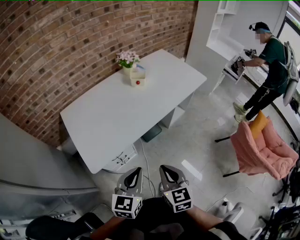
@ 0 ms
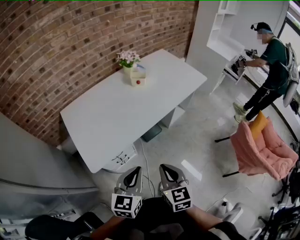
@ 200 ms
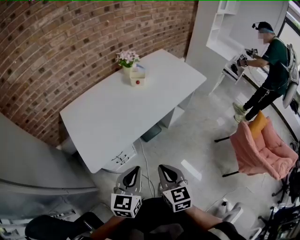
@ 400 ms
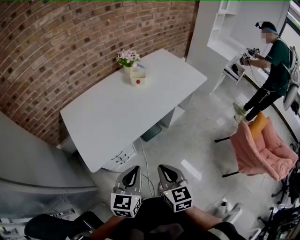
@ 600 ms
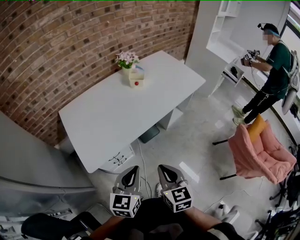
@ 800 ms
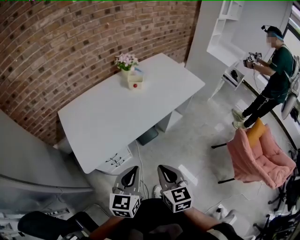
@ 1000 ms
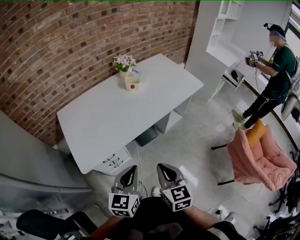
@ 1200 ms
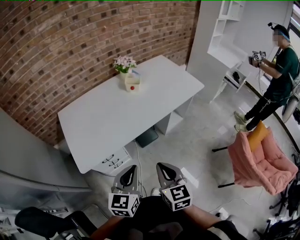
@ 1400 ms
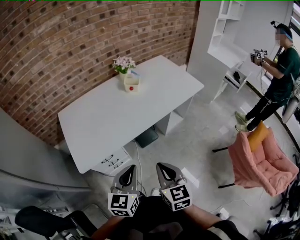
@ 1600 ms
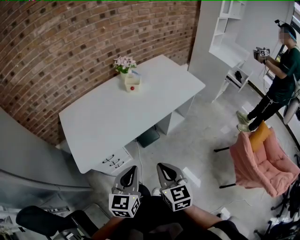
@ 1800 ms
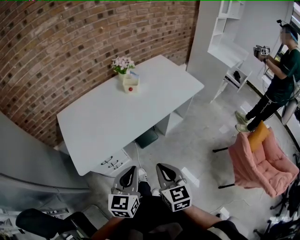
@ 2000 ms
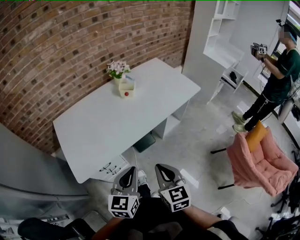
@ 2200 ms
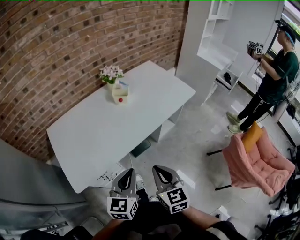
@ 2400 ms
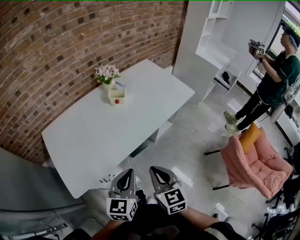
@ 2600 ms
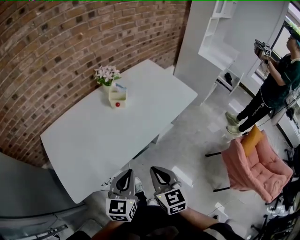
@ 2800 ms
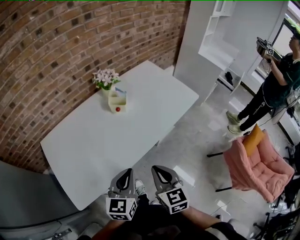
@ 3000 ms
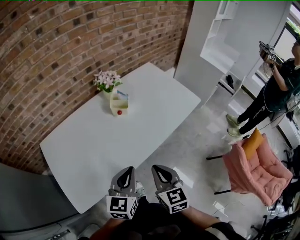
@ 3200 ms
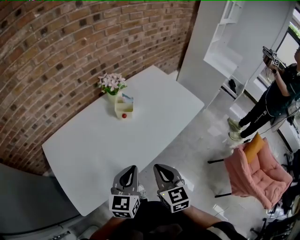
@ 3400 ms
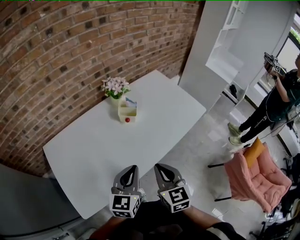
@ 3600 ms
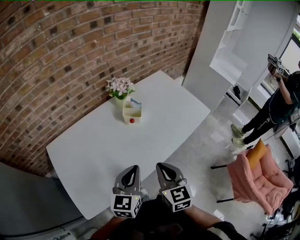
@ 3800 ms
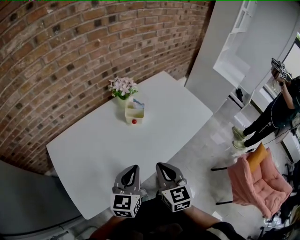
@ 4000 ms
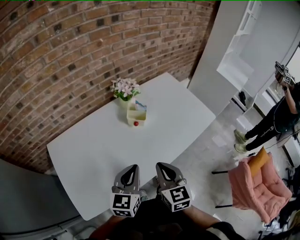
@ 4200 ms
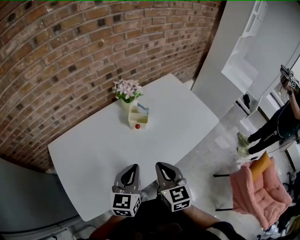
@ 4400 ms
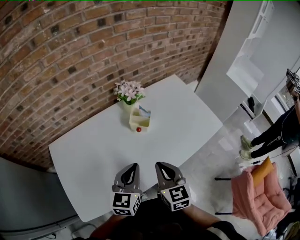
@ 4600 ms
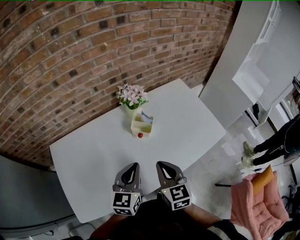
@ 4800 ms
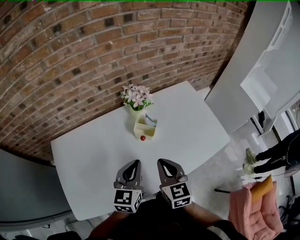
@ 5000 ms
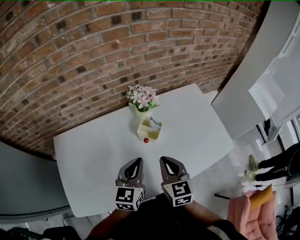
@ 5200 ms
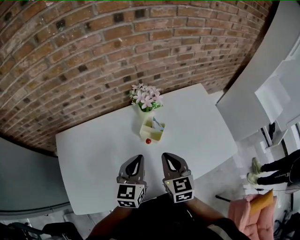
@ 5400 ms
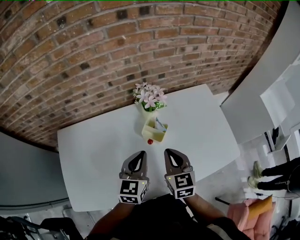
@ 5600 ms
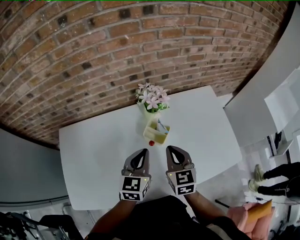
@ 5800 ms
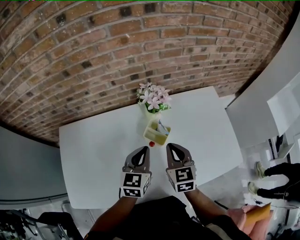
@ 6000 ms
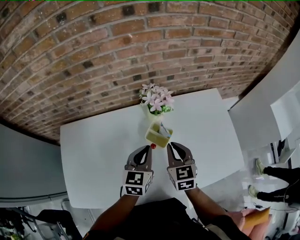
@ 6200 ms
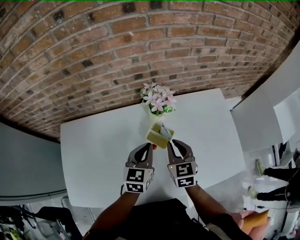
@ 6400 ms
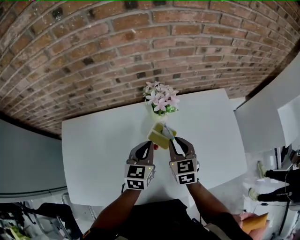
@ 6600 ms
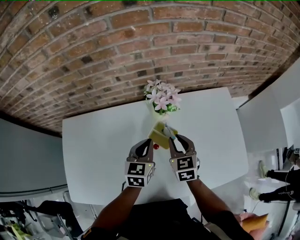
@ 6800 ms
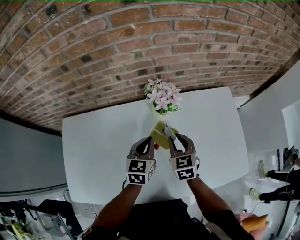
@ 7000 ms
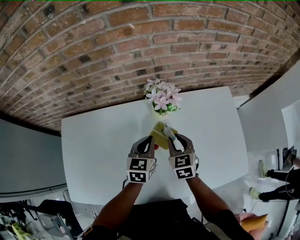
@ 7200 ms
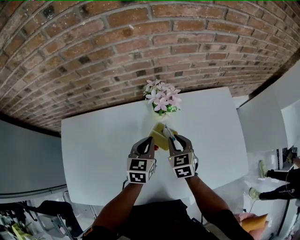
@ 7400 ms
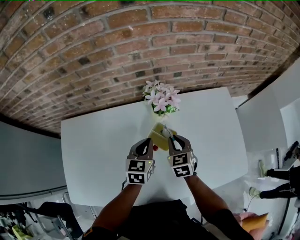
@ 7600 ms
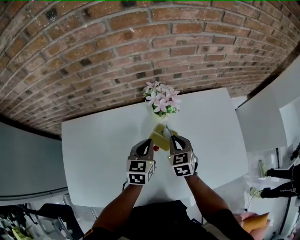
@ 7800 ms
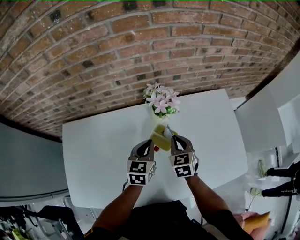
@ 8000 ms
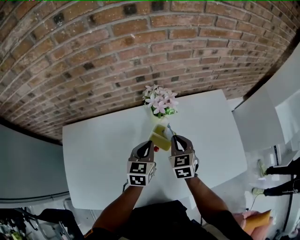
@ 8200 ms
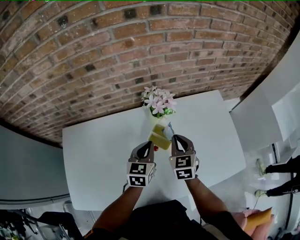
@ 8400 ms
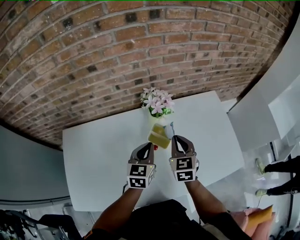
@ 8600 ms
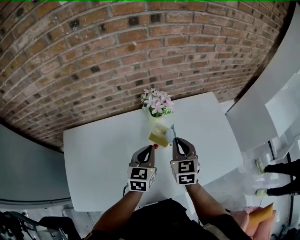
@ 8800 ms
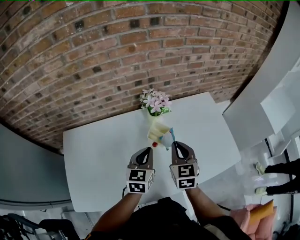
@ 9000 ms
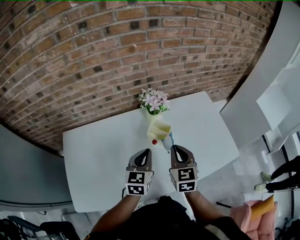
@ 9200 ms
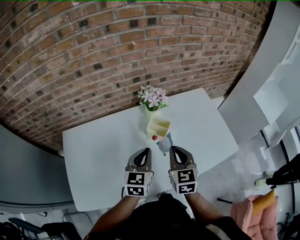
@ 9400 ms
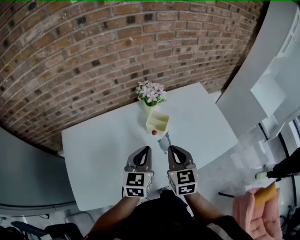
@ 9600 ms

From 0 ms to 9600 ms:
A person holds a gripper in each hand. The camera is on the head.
From 0 ms to 1600 ms: Both grippers move to the right, roughly 10 cm.
From 1600 ms to 3200 ms: Both grippers move forward, some 25 cm.
From 3200 ms to 4800 ms: Both grippers move forward, approximately 20 cm.
From 4800 ms to 6400 ms: Both grippers travel together forward, about 20 cm.
From 6400 ms to 8000 ms: The right gripper is displaced downward by approximately 5 cm, while the left gripper moves roughly 5 cm.
From 8000 ms to 9600 ms: Both grippers travel together backward and upward, approximately 20 cm.

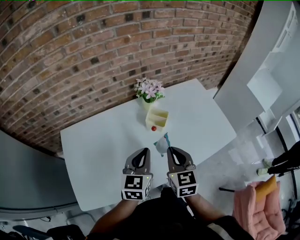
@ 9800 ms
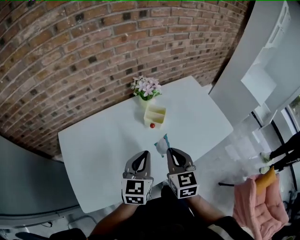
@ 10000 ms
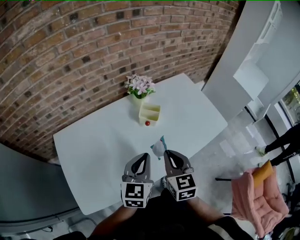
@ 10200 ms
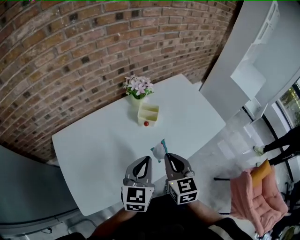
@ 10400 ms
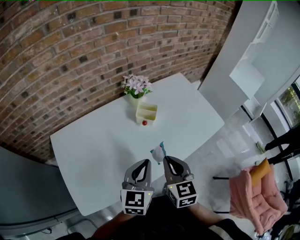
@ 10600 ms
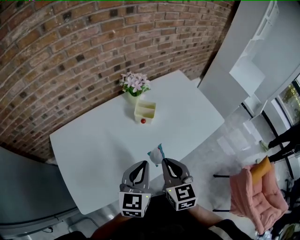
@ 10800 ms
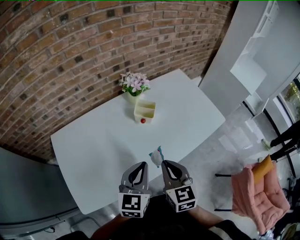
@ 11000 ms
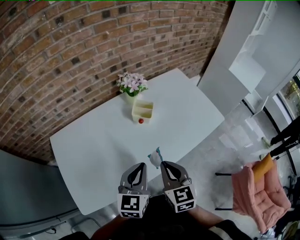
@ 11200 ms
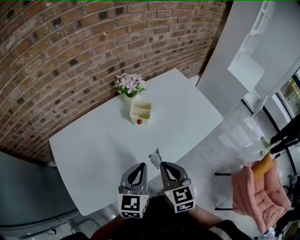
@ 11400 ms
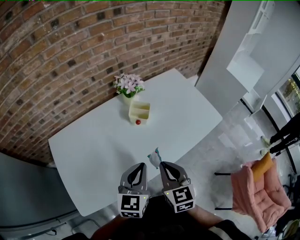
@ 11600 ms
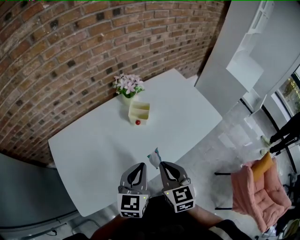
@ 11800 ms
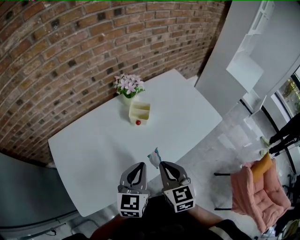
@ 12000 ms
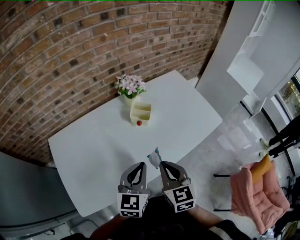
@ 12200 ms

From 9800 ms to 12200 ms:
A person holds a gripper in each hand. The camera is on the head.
From 9800 ms to 11000 ms: The two grippers go about 10 cm backward.
From 11000 ms to 12200 ms: The grippers stay close to where they were, moving slightly.

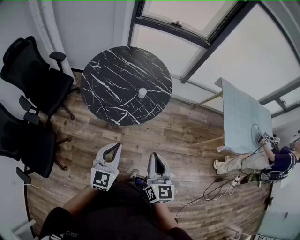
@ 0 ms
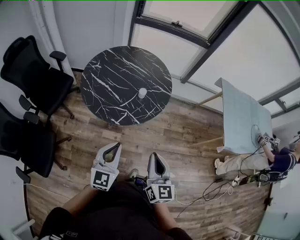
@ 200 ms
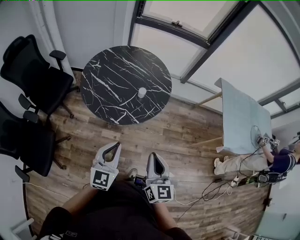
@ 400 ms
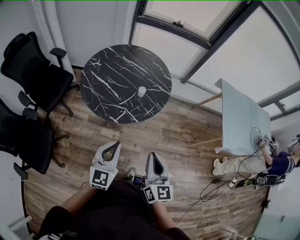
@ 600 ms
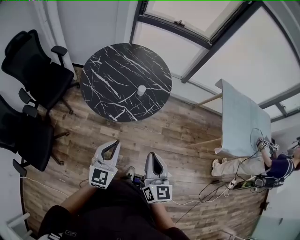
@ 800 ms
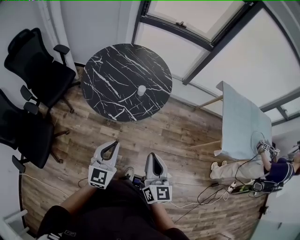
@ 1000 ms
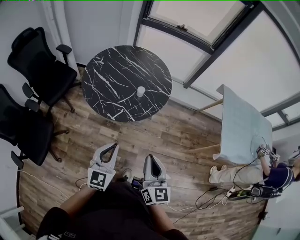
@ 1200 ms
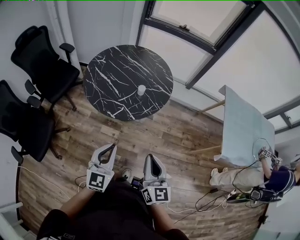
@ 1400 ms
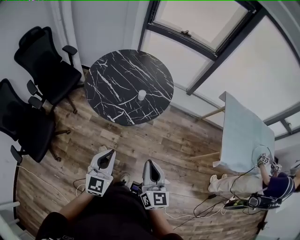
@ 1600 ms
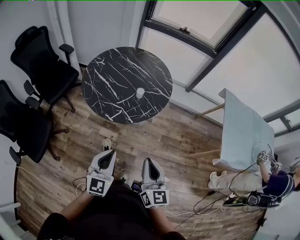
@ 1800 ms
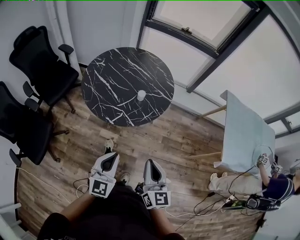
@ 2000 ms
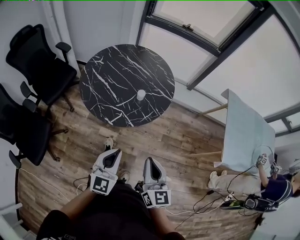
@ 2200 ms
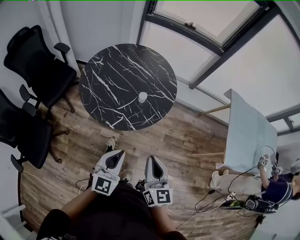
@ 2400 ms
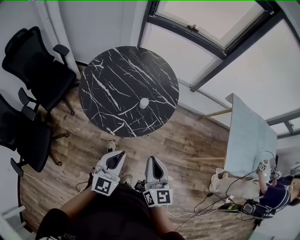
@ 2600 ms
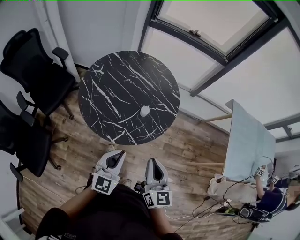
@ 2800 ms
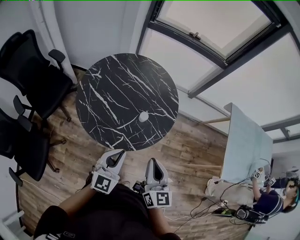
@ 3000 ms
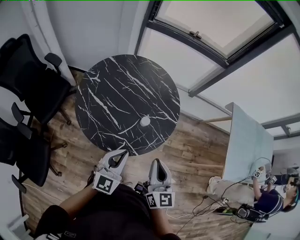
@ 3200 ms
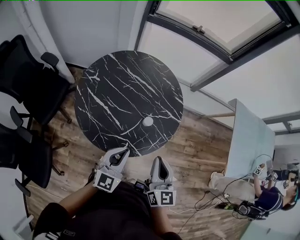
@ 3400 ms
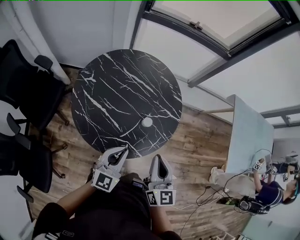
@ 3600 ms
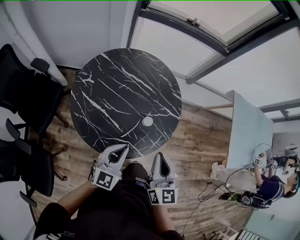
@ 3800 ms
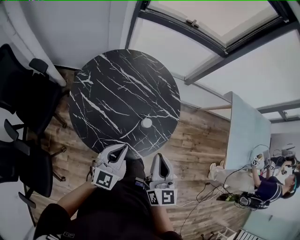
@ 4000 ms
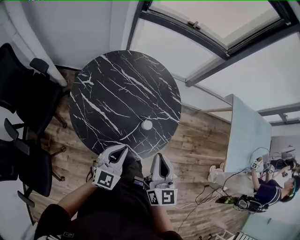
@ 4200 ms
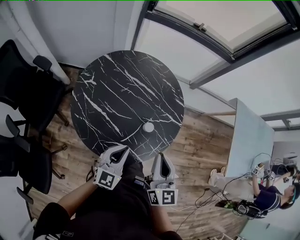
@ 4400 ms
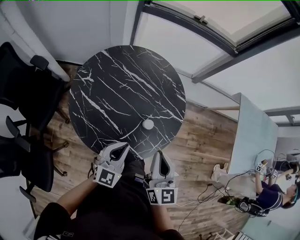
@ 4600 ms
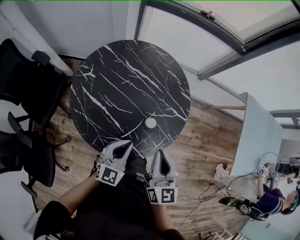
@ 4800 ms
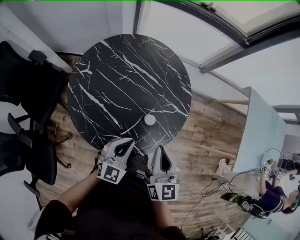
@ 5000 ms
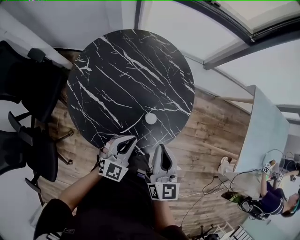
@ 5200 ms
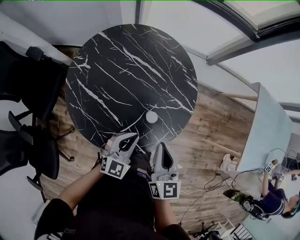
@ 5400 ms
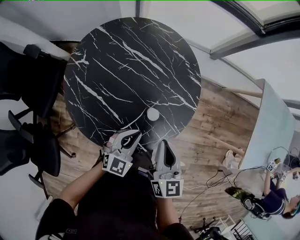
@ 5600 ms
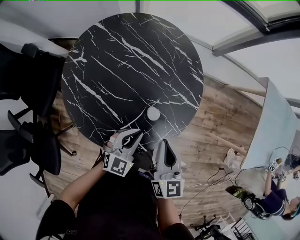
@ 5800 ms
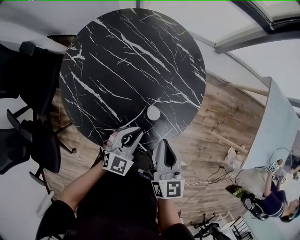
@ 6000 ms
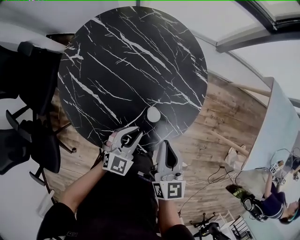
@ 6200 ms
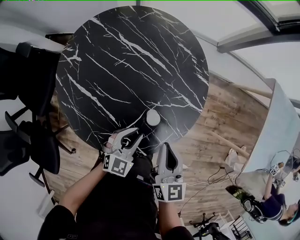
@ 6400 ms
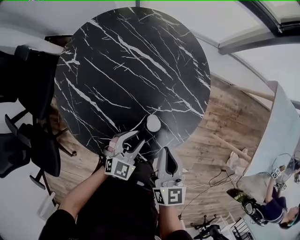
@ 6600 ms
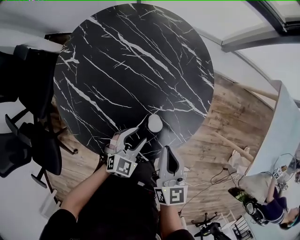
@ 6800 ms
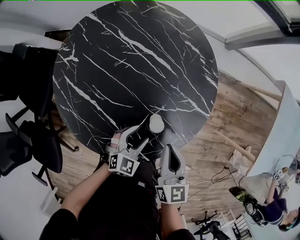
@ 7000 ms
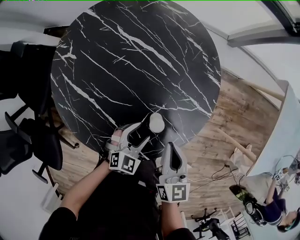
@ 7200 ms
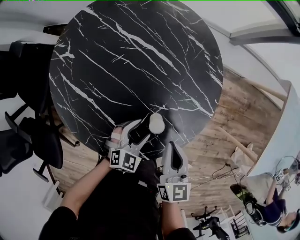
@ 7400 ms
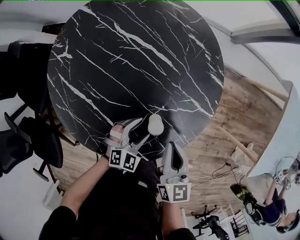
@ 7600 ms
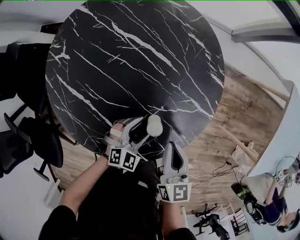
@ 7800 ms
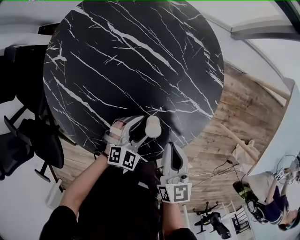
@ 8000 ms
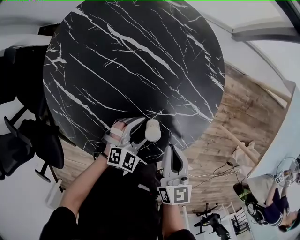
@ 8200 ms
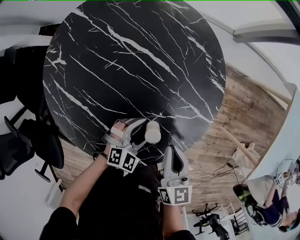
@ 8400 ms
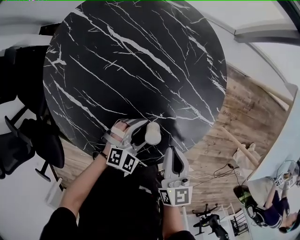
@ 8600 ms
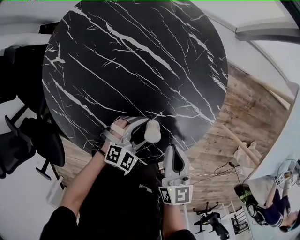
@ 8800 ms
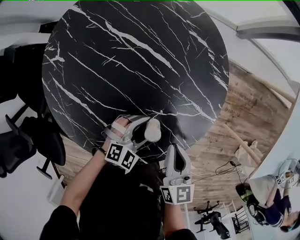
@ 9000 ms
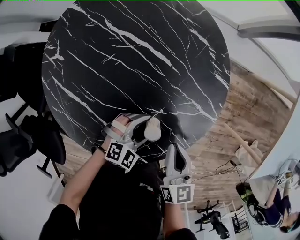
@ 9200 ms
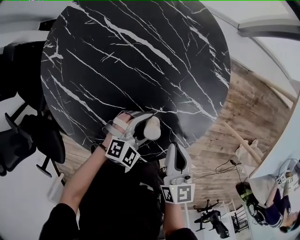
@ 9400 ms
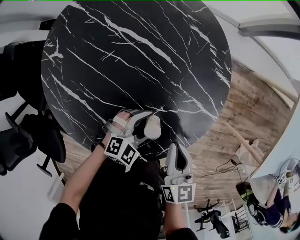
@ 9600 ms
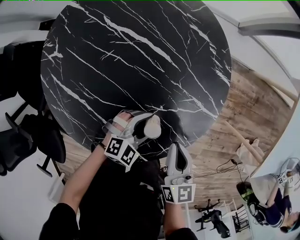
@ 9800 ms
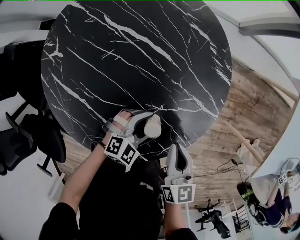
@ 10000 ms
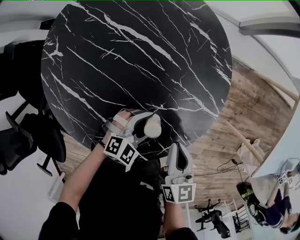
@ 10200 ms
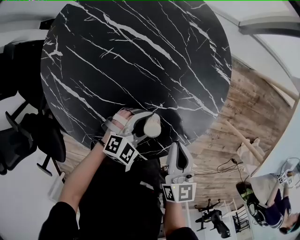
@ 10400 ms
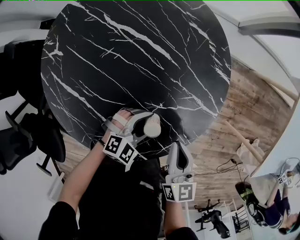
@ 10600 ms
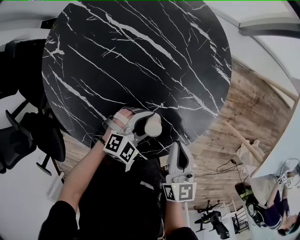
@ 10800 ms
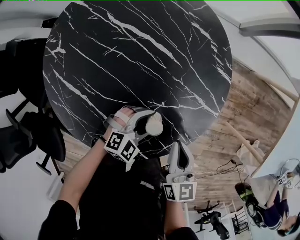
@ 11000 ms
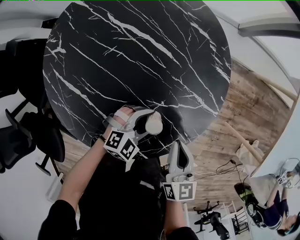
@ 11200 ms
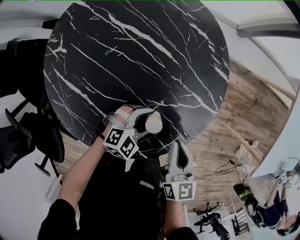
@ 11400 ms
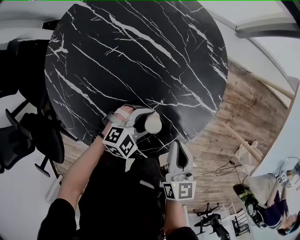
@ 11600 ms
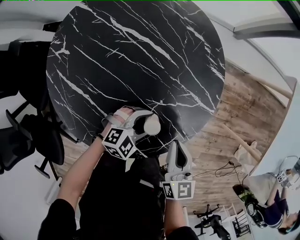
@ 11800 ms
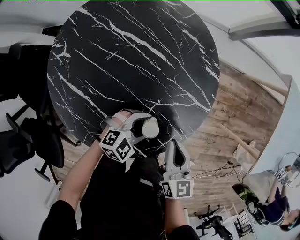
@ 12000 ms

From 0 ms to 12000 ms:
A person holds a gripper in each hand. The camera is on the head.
From 0 ms to 1600 ms: The right gripper shifts approximately 5 cm to the right, while the left gripper is displaced to the right and backward by some 10 cm.
From 1600 ms to 3000 ms: The grippers both shift forward by approximately 25 cm.
From 3000 ms to 4400 ms: The left gripper moves forward, to the left and downward, some 15 cm. Meanwhile the right gripper goes approximately 15 cm forward and to the left.
From 4400 ms to 6000 ms: The right gripper moves downward and forward, roughly 15 cm, while the left gripper shifts approximately 15 cm downward, forward and to the right.
From 6000 ms to 7600 ms: Both grippers travel together downward, roughly 10 cm. The left gripper changes its angle by approximately 20 degrees, and opens its fingers.
From 7600 ms to 10400 ms: The grippers move only a little.
From 10400 ms to 12000 ms: The grippers move only a little.
